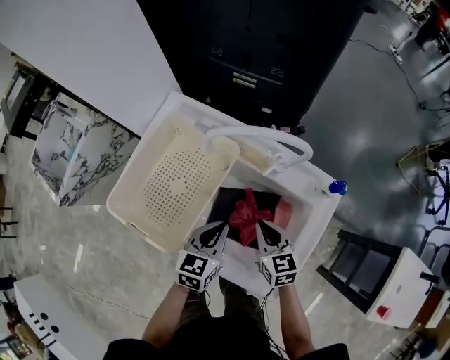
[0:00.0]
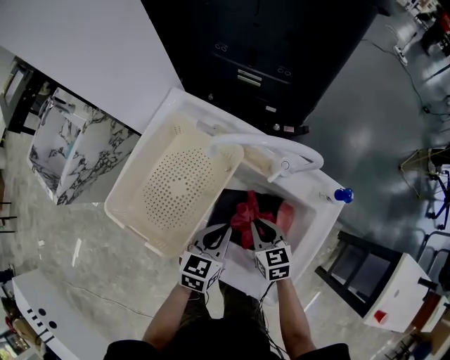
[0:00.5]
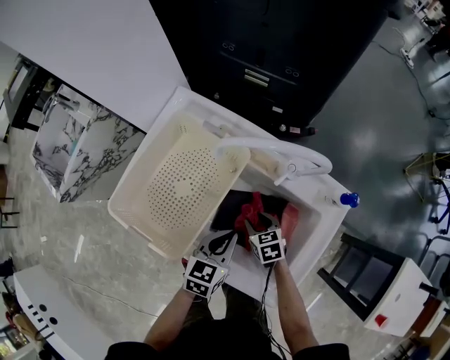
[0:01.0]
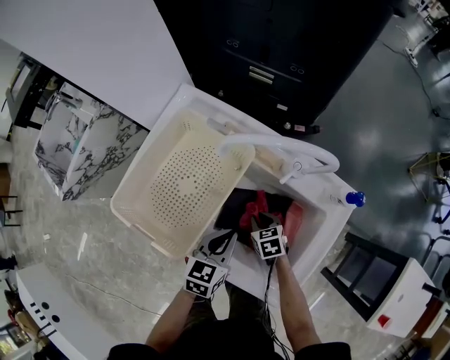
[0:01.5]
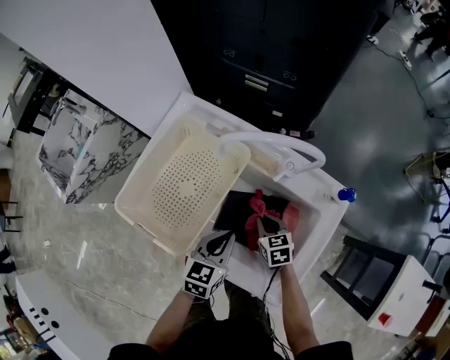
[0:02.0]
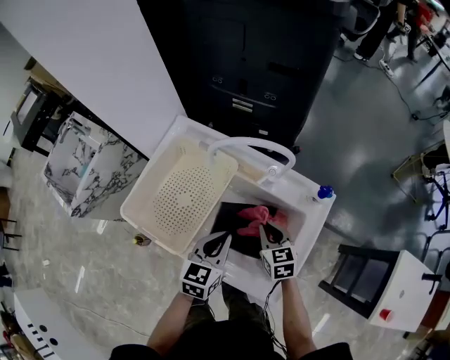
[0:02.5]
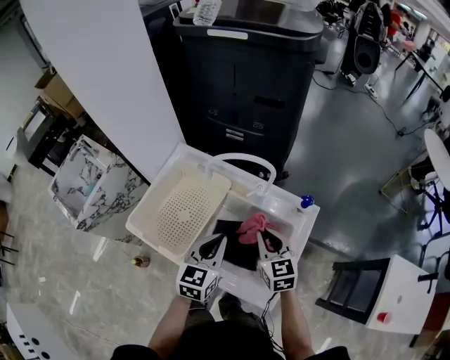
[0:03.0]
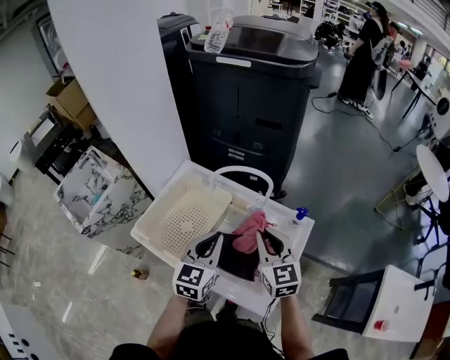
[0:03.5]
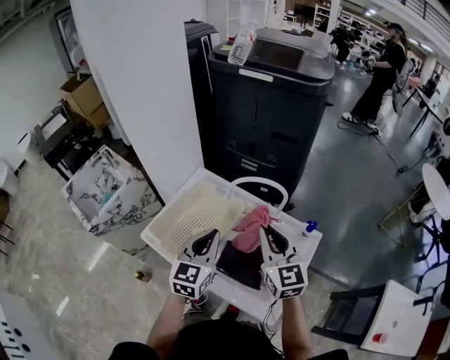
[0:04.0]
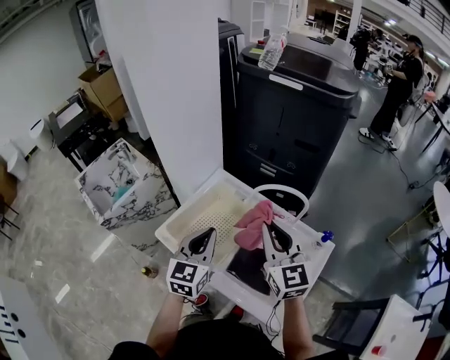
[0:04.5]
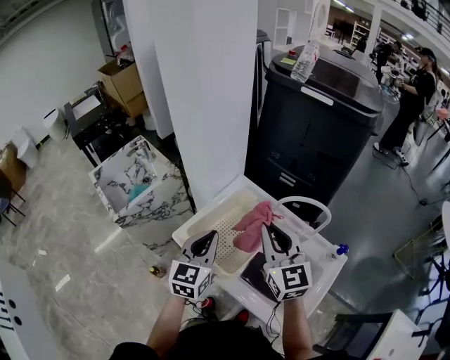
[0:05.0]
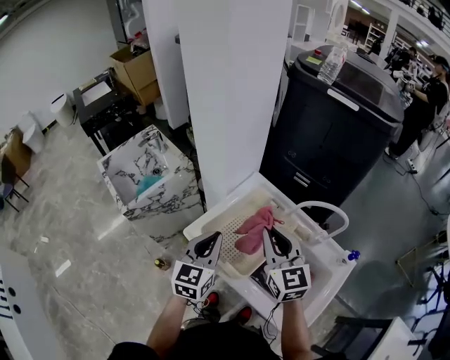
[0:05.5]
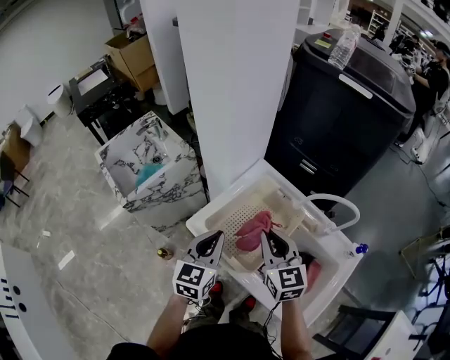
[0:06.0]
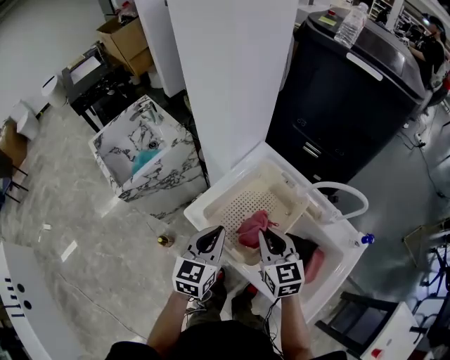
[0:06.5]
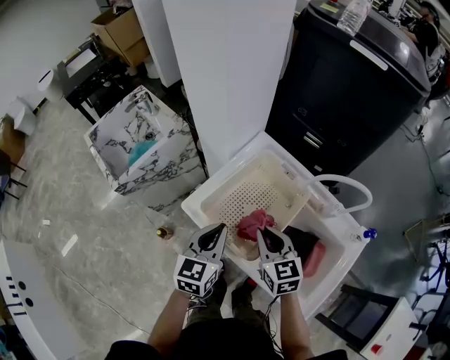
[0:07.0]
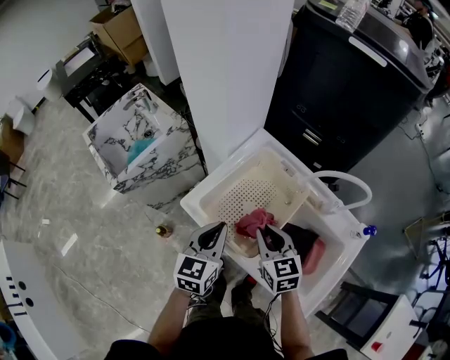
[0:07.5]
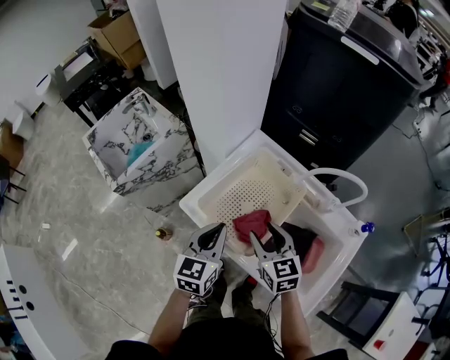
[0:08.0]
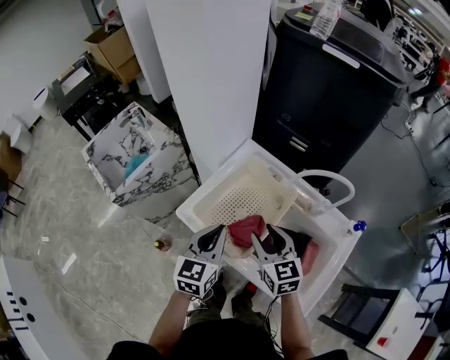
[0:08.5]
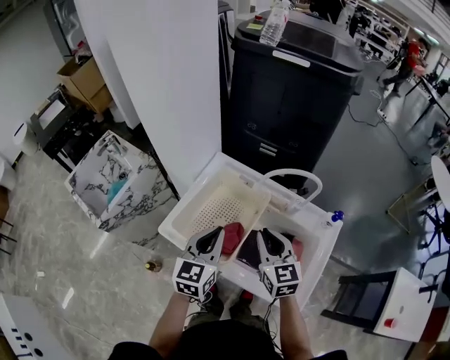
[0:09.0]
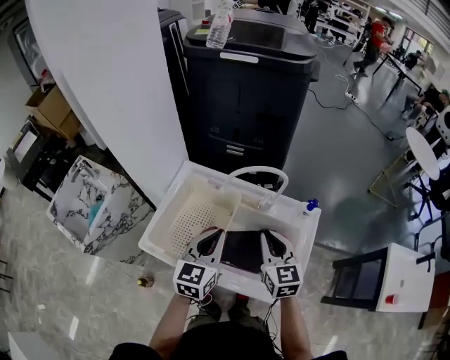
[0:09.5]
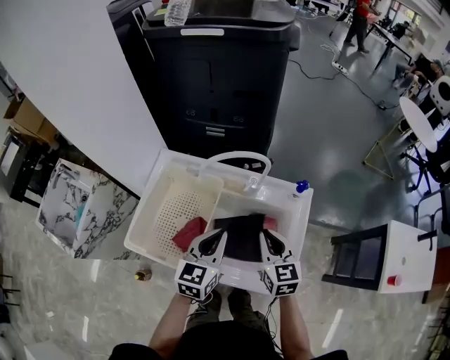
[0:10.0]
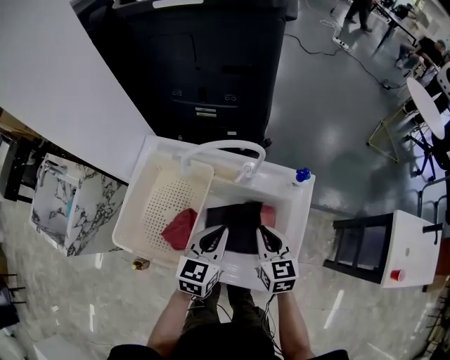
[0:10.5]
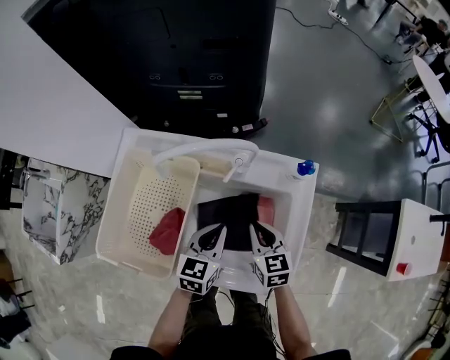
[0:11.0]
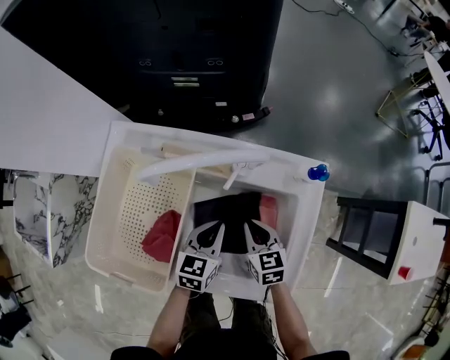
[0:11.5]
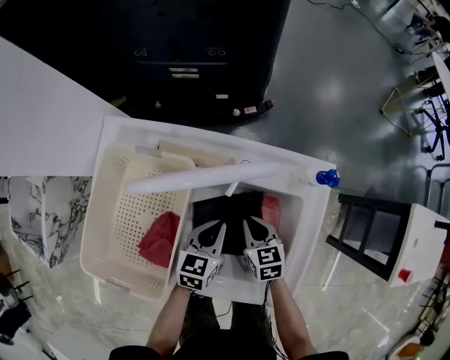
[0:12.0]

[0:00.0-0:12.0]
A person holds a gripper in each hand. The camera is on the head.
0.0 to 2.0 s: The right gripper travels downward by some 10 cm, and opens and closes again.
2.0 to 4.0 s: The left gripper heads upward, covering about 25 cm, and swivels roughly 30 degrees; the right gripper shifts some 40 cm upward, and tilts its fingers about 40 degrees upward.
4.0 to 6.0 s: The two grippers go roughly 20 cm to the left.
6.0 to 8.0 s: The right gripper goes about 10 cm downward, and opens its fingers; the left gripper ends up approximately 5 cm from where it was.
8.0 to 10.0 s: The right gripper ends up some 25 cm from where it was, rotates approximately 30 degrees, and closes. Meanwhile the left gripper moves some 25 cm, and swivels about 30 degrees.
10.0 to 12.0 s: Both grippers move downward, approximately 25 cm. The left gripper rotates about 20 degrees; the right gripper changes its angle by some 20 degrees.

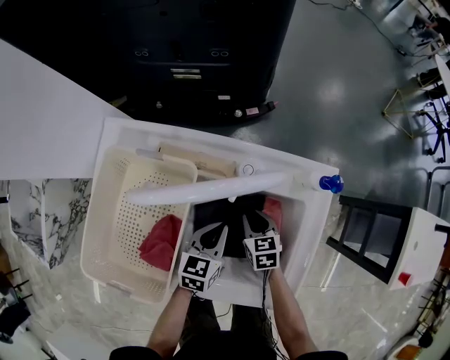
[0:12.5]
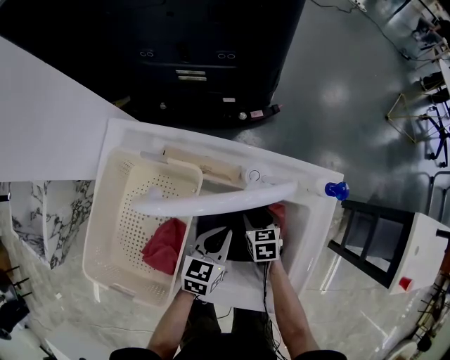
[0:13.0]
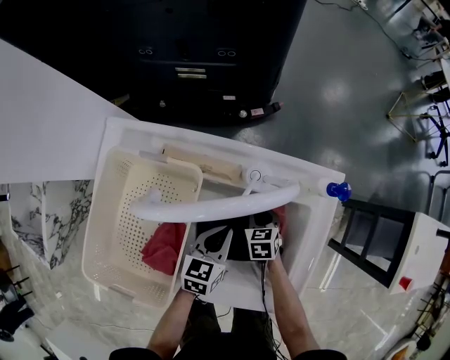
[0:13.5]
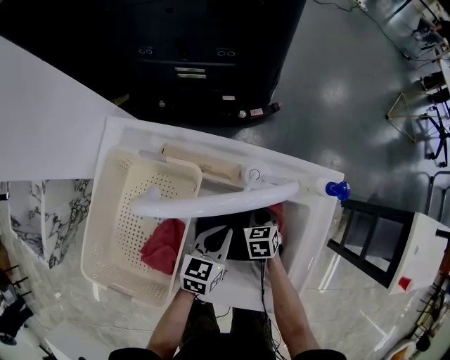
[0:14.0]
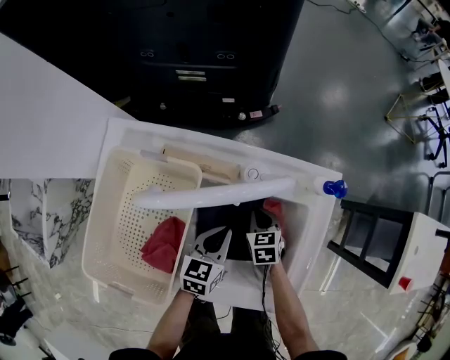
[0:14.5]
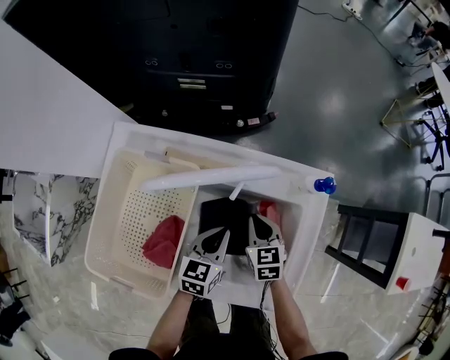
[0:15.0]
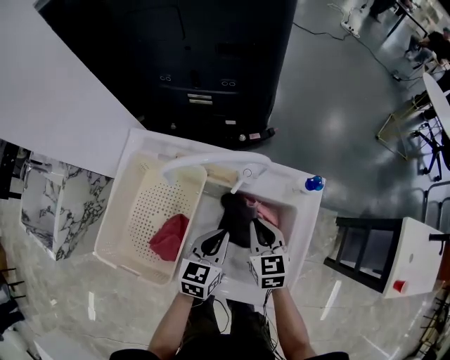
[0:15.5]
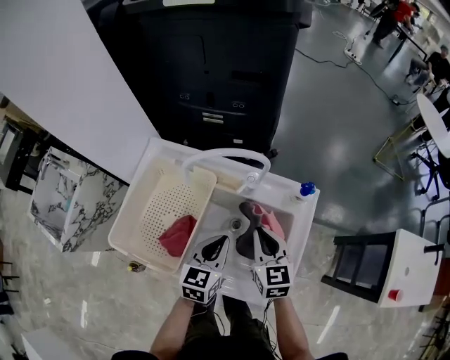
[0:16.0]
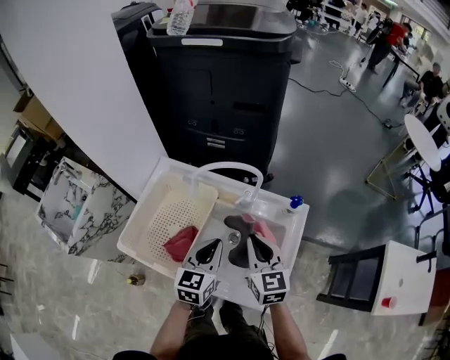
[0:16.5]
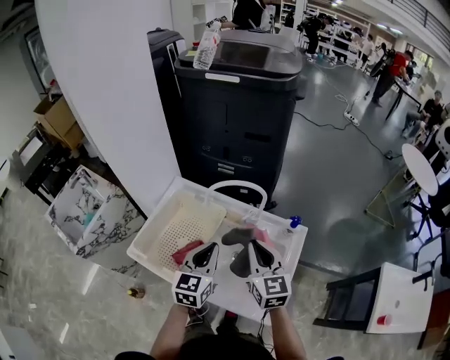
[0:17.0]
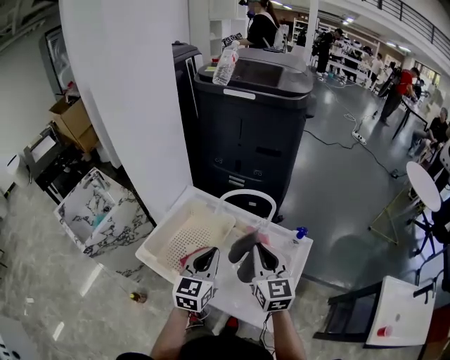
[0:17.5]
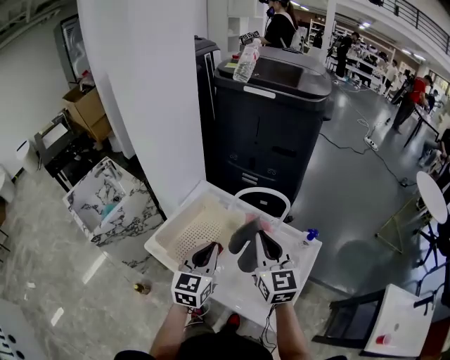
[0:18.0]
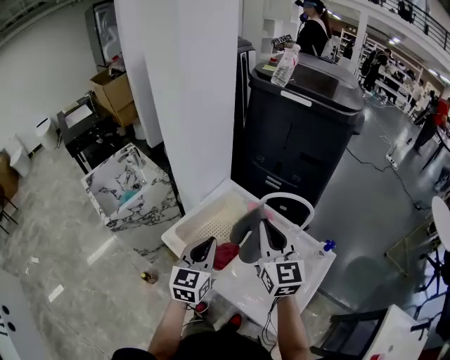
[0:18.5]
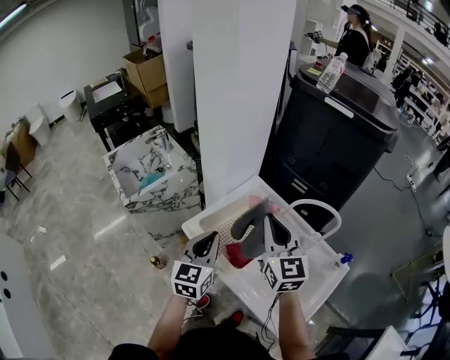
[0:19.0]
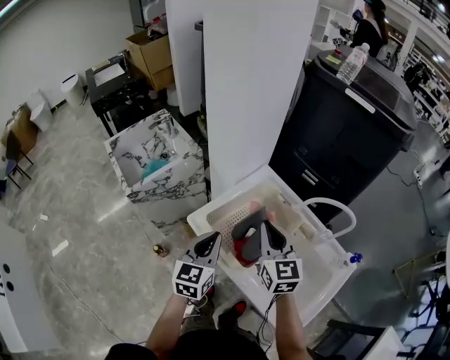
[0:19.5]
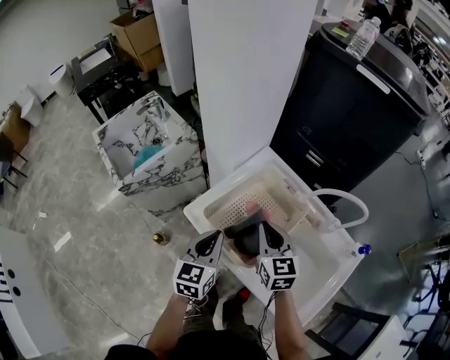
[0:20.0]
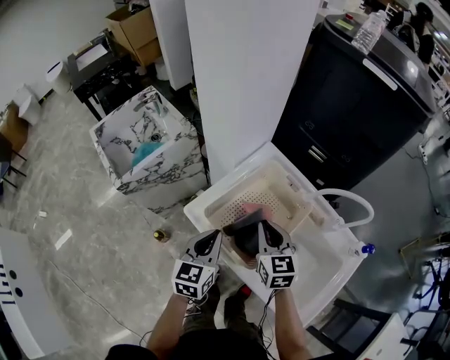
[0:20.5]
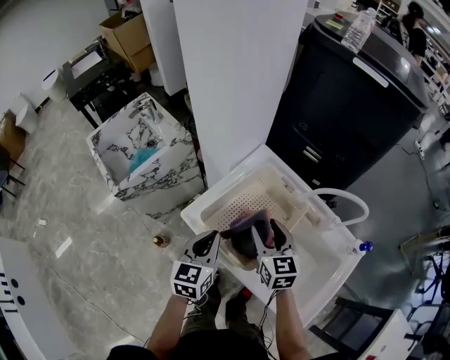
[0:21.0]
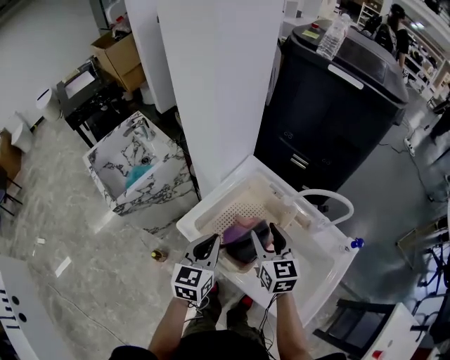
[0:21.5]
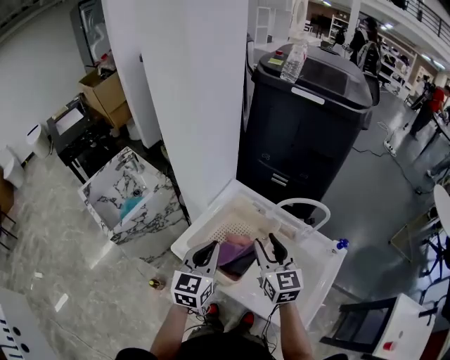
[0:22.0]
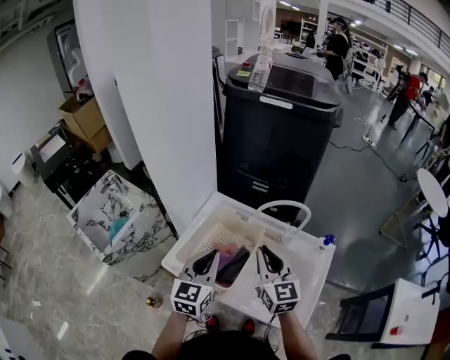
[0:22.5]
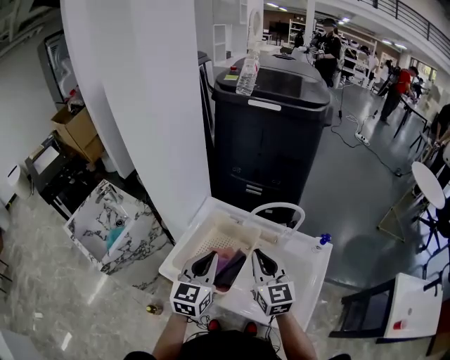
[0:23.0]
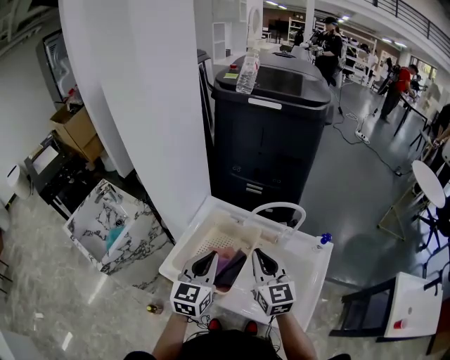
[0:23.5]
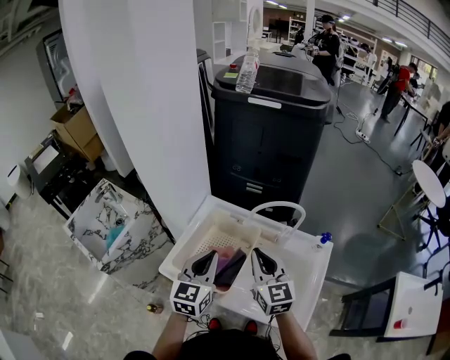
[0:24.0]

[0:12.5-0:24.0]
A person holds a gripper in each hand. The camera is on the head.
12.5 to 14.5 s: The right gripper opens and closes again.
14.5 to 16.5 s: The left gripper moves upward, approximately 20 cm, and turns by approximately 20 degrees. Meanwhile the right gripper heads upward, covering approximately 35 cm, and points its fingers approximately 40 degrees further upward.
16.5 to 18.5 s: The right gripper shifts approximately 20 cm upward and to the left, and rotates some 30 degrees, while the left gripper goes some 20 cm to the left and upward, and rotates roughly 30 degrees.
18.5 to 20.0 s: The right gripper moves downward and to the left, roughly 20 cm, and turns by about 20 degrees. Meanwhile the left gripper heads downward and to the left, covering about 15 cm.
20.0 to 22.0 s: The right gripper travels upward and to the right by approximately 10 cm, and opens. Meanwhile the left gripper heads upward, covering about 10 cm.
22.0 to 24.0 s: The right gripper closes up, while the left gripper moves to the right, some 5 cm.

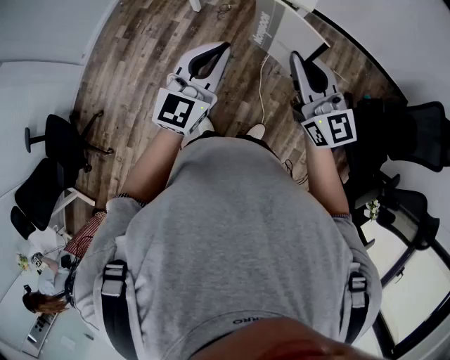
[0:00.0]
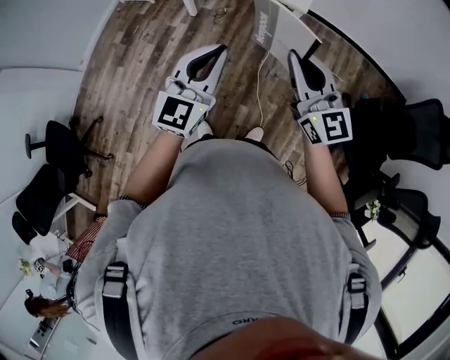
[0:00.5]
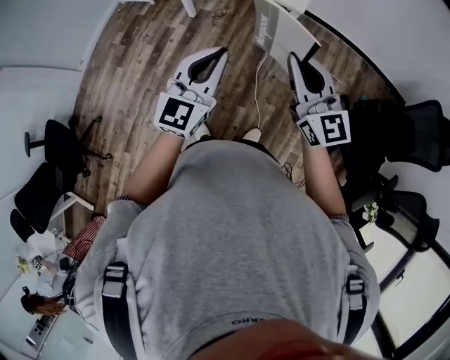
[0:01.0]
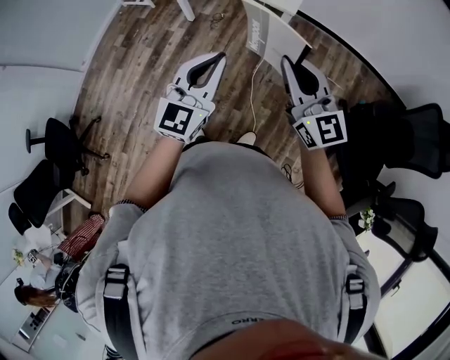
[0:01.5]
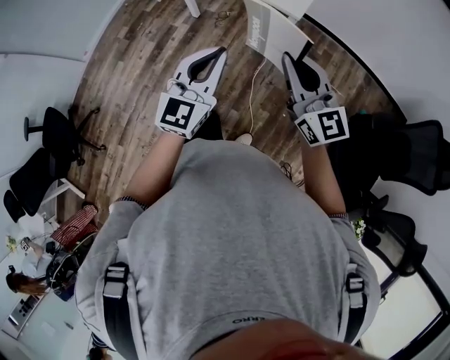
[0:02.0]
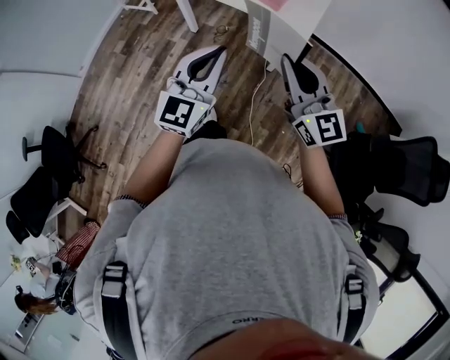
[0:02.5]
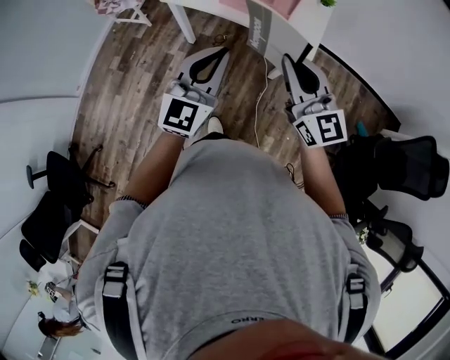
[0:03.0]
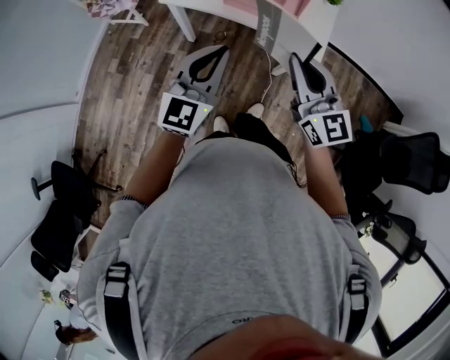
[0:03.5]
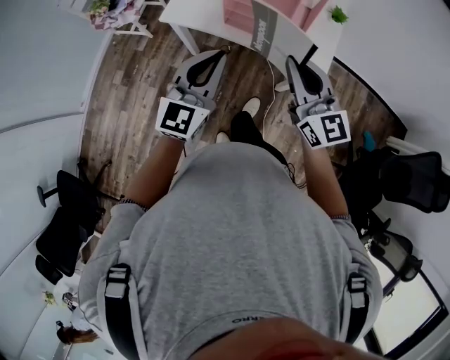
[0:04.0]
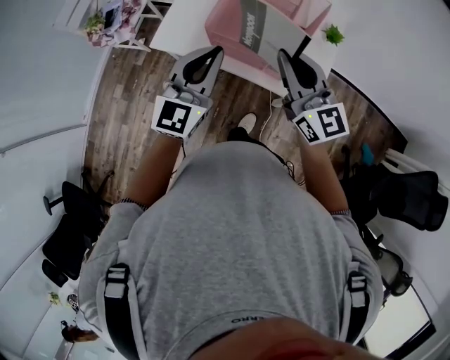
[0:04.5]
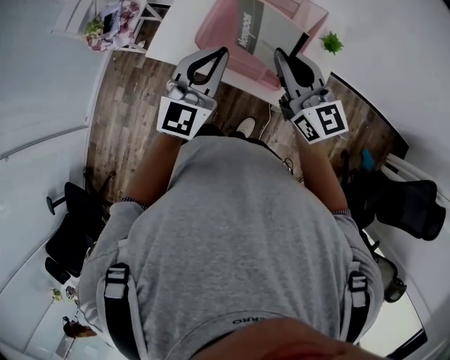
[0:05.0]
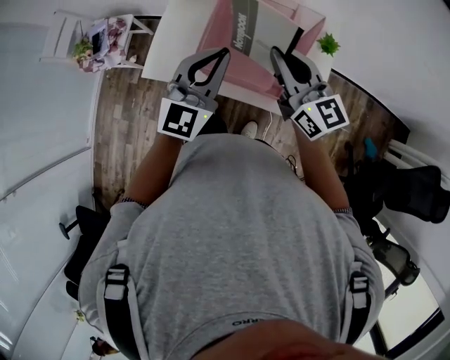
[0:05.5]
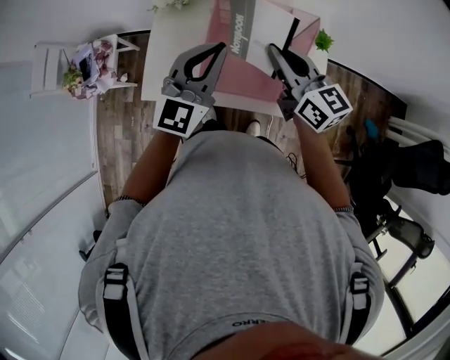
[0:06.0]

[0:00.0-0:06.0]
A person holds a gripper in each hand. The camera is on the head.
0.0 to 2.0 s: The two grippers go roughly 10 cm to the right.
2.0 to 4.0 s: The two grippers go approximately 35 cm forward.
4.0 to 6.0 s: Both grippers travel together forward, some 30 cm. The right gripper swivels approximately 20 degrees.
